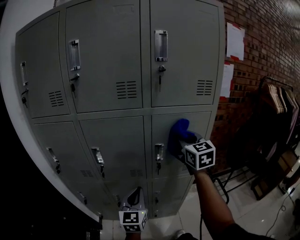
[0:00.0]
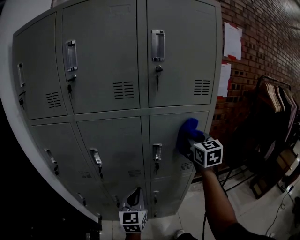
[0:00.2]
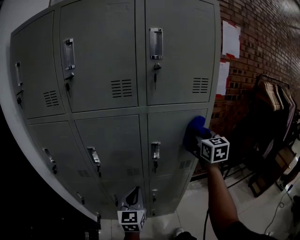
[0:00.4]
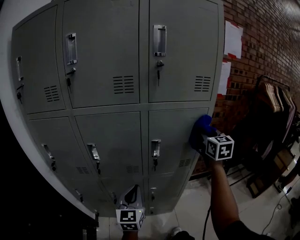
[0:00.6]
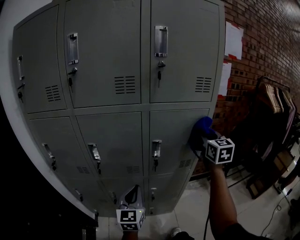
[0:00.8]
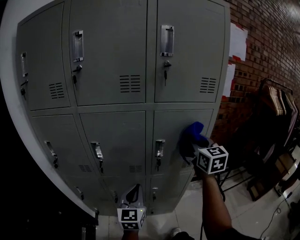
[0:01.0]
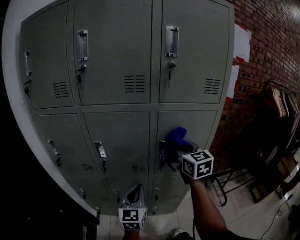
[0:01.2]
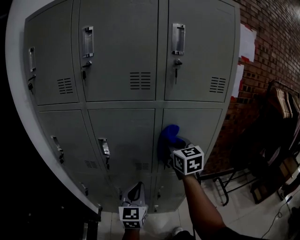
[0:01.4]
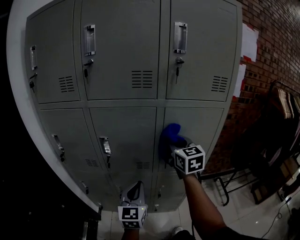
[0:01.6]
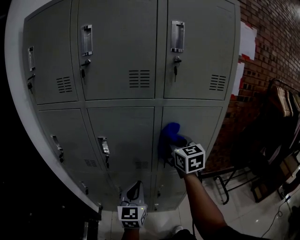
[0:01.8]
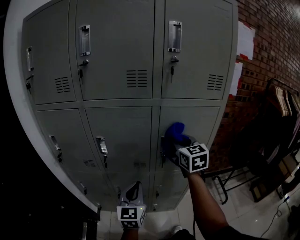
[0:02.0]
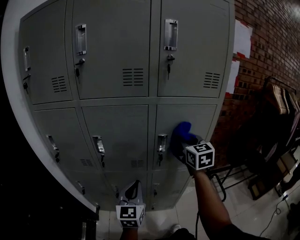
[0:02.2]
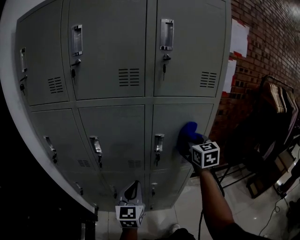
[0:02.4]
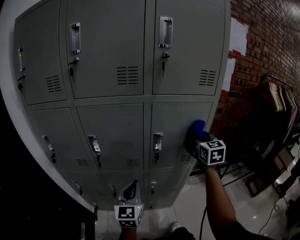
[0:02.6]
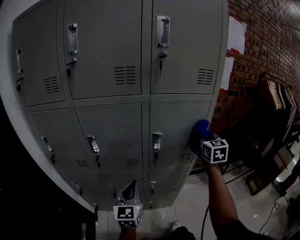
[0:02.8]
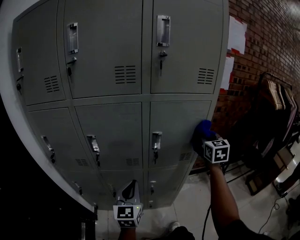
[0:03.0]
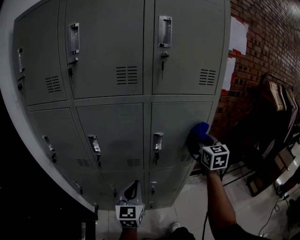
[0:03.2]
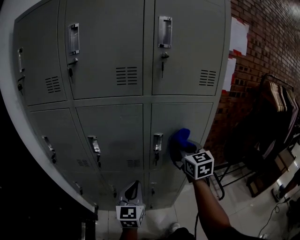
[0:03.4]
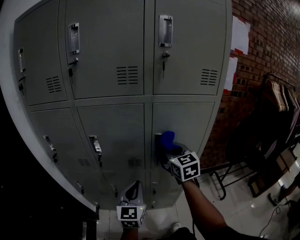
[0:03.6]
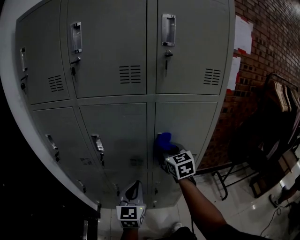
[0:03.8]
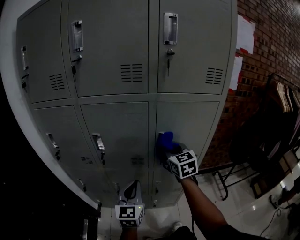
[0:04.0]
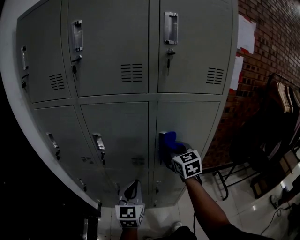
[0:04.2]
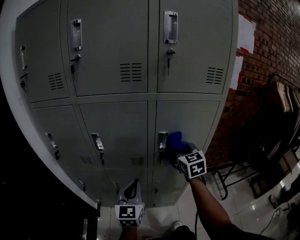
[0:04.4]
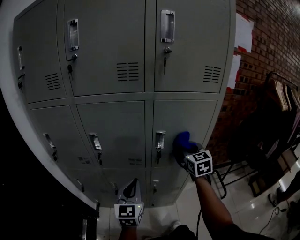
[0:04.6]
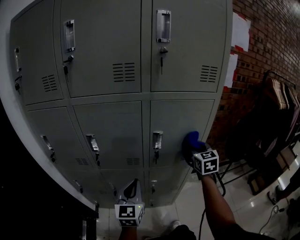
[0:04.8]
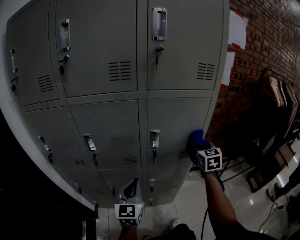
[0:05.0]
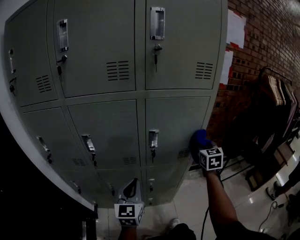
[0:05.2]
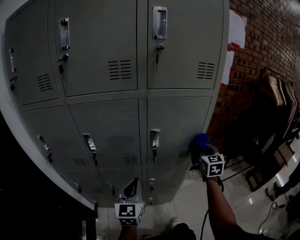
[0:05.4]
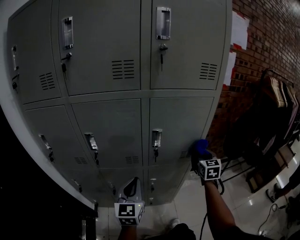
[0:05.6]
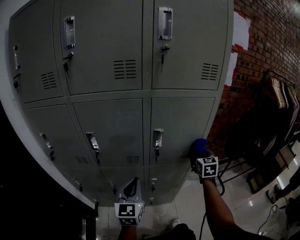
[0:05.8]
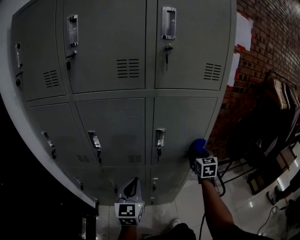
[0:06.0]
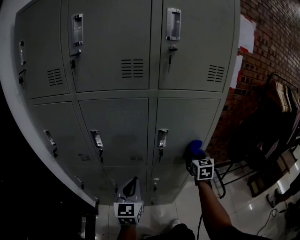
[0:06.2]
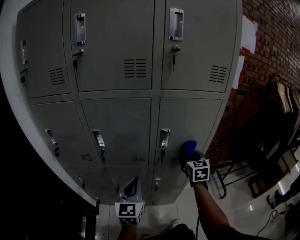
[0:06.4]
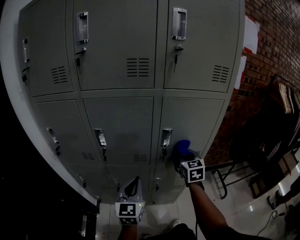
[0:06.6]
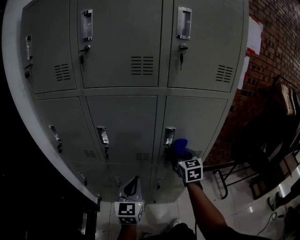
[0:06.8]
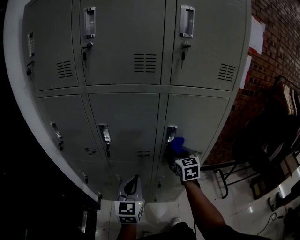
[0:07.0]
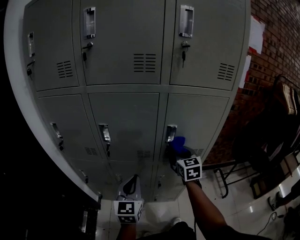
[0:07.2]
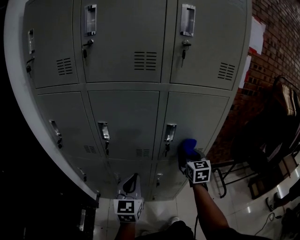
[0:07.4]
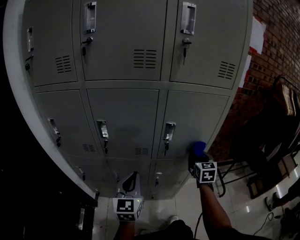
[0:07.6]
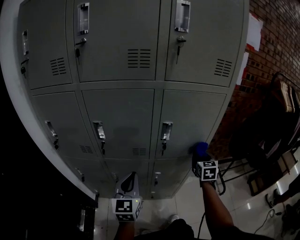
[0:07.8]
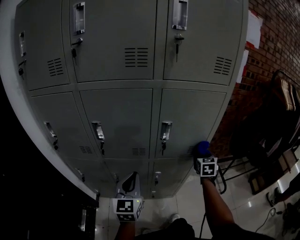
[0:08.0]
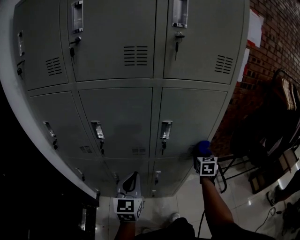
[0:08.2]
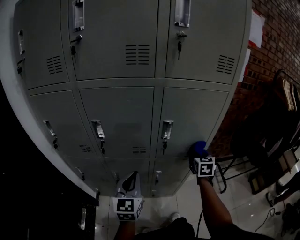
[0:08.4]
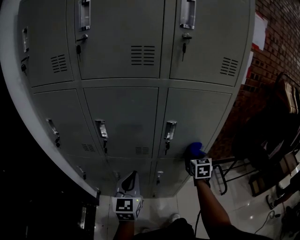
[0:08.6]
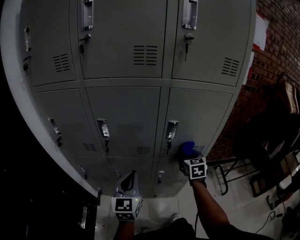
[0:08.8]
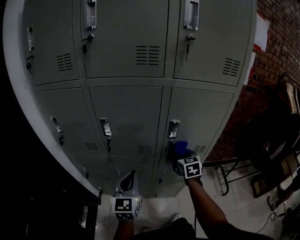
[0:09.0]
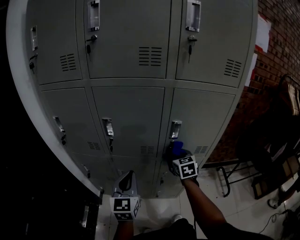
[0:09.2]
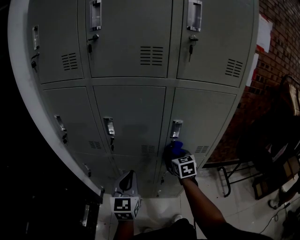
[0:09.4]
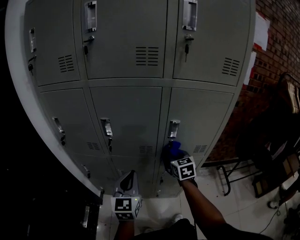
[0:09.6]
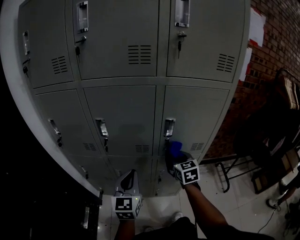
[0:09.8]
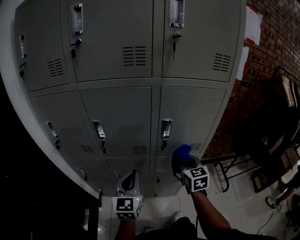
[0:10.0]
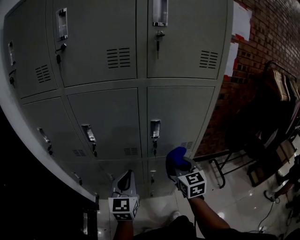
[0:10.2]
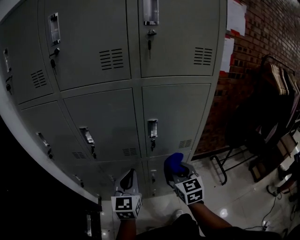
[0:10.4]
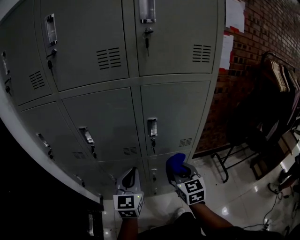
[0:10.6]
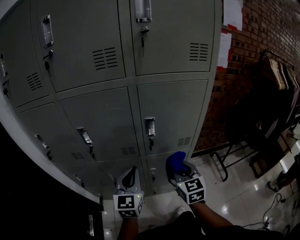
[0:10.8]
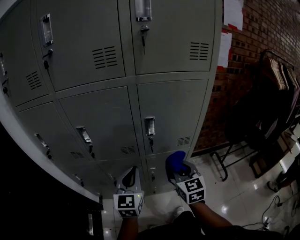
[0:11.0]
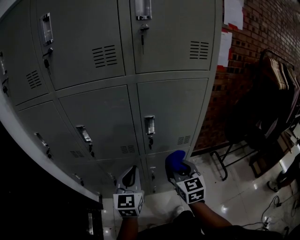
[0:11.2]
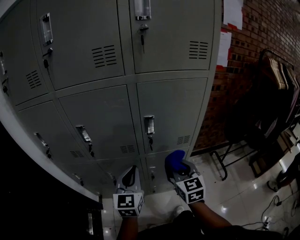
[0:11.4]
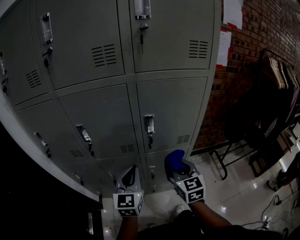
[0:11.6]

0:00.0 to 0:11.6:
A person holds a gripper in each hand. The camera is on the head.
0:00.0 to 0:01.4: The right gripper moves to the left, roughly 10 cm.
0:01.4 to 0:02.8: The right gripper is displaced to the right by approximately 20 cm.
0:02.8 to 0:04.4: The right gripper goes about 15 cm to the left.
0:04.4 to 0:05.8: The right gripper shifts approximately 20 cm to the right and downward, and rotates roughly 20 degrees.
0:05.8 to 0:07.2: The right gripper heads to the left, covering roughly 20 cm.
0:07.2 to 0:08.8: The right gripper heads downward, covering about 5 cm, and moves about 15 cm to the right and comes back.
0:08.8 to 0:10.2: The right gripper moves backward and upward, approximately 10 cm, and travels to the left and back again, some 10 cm each way.
0:10.2 to 0:11.6: The grippers move only a little.

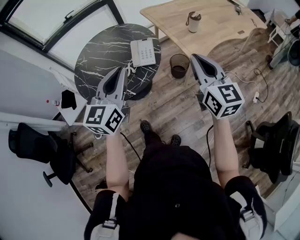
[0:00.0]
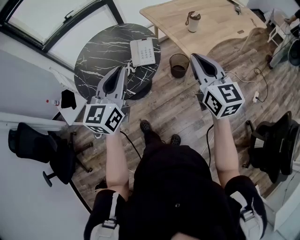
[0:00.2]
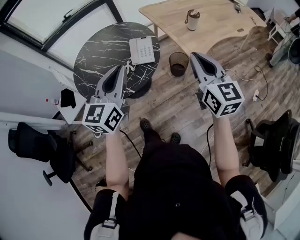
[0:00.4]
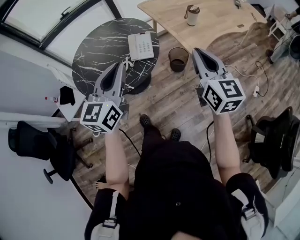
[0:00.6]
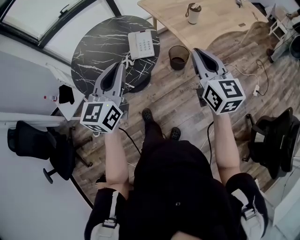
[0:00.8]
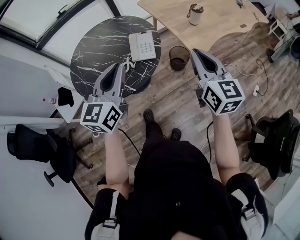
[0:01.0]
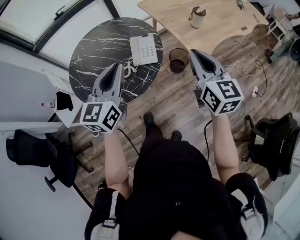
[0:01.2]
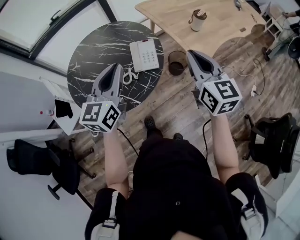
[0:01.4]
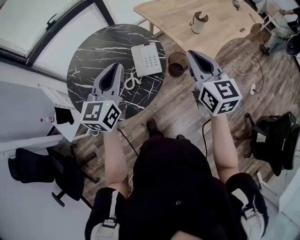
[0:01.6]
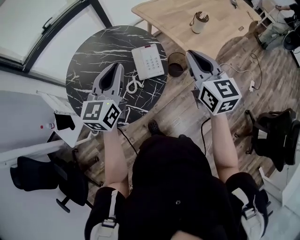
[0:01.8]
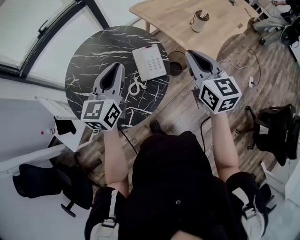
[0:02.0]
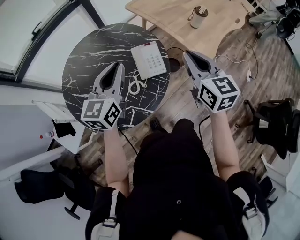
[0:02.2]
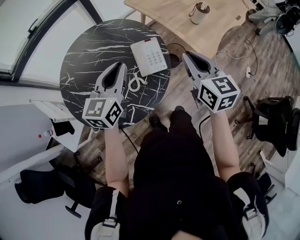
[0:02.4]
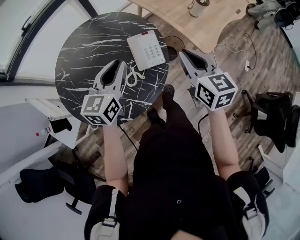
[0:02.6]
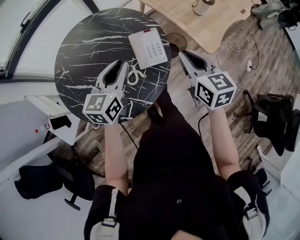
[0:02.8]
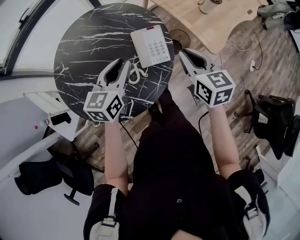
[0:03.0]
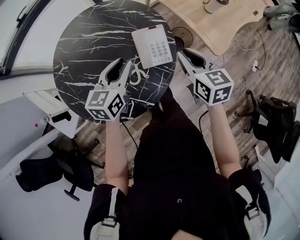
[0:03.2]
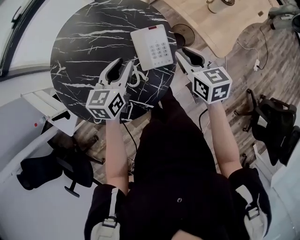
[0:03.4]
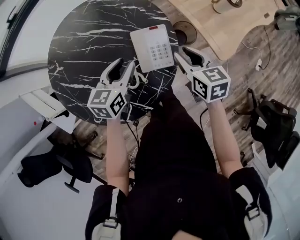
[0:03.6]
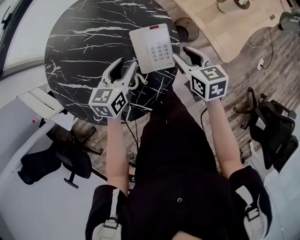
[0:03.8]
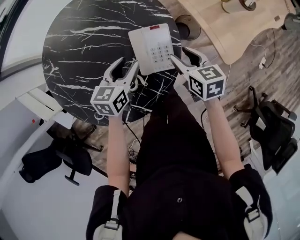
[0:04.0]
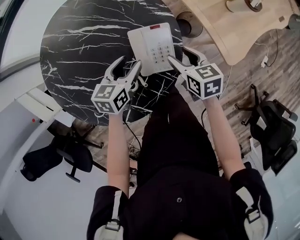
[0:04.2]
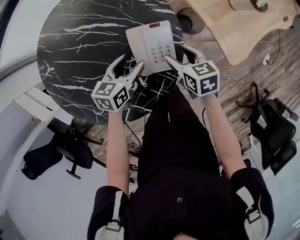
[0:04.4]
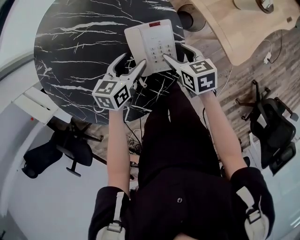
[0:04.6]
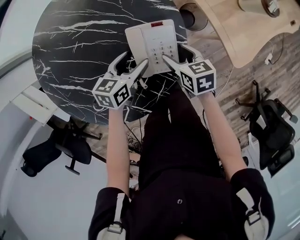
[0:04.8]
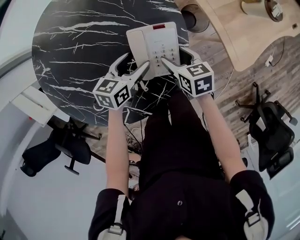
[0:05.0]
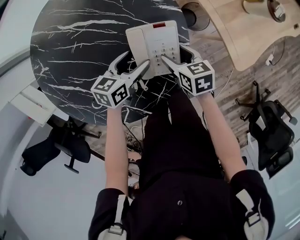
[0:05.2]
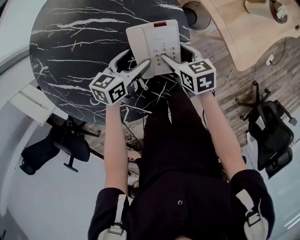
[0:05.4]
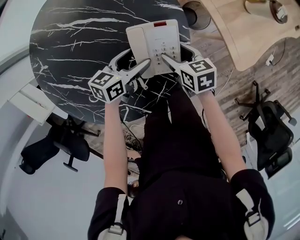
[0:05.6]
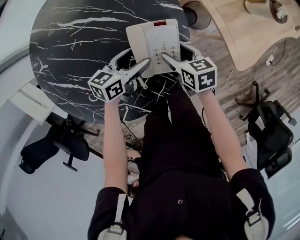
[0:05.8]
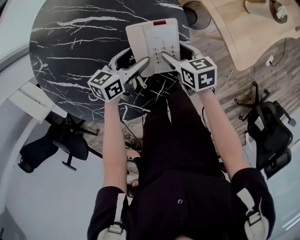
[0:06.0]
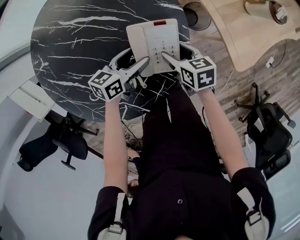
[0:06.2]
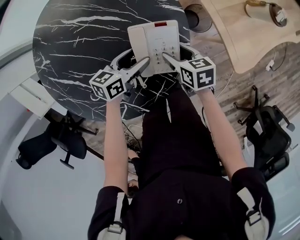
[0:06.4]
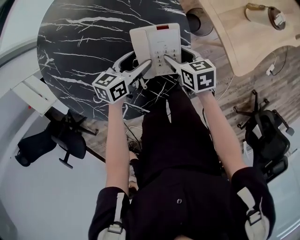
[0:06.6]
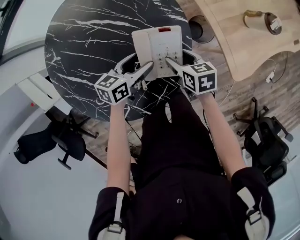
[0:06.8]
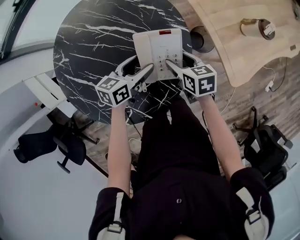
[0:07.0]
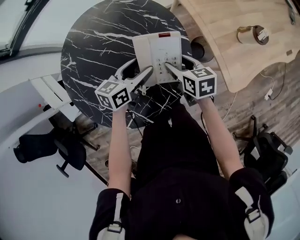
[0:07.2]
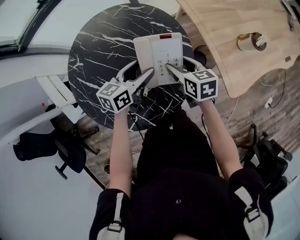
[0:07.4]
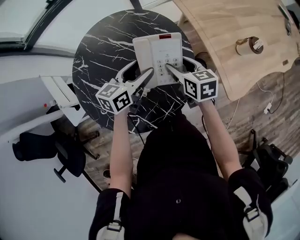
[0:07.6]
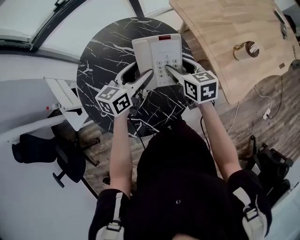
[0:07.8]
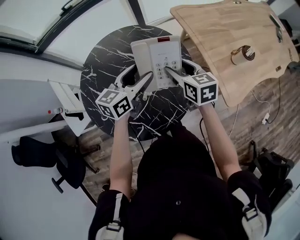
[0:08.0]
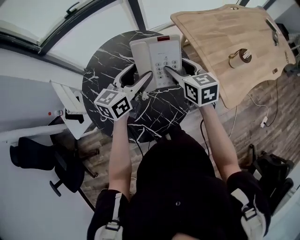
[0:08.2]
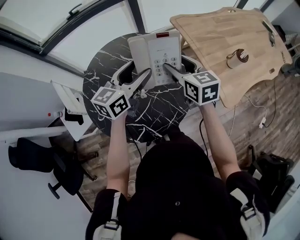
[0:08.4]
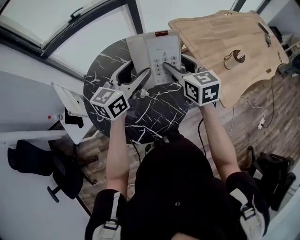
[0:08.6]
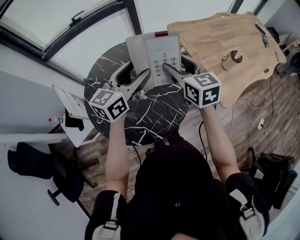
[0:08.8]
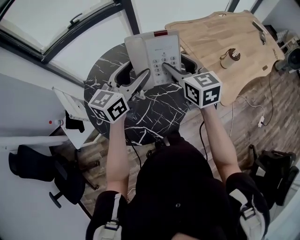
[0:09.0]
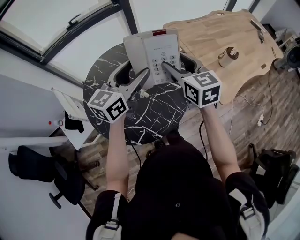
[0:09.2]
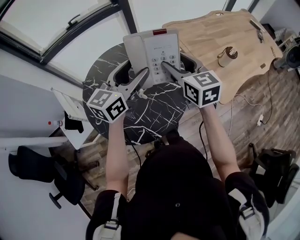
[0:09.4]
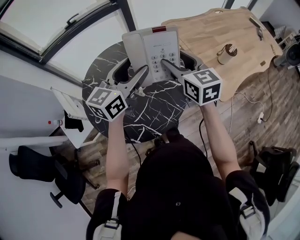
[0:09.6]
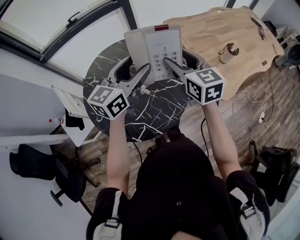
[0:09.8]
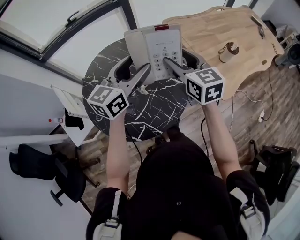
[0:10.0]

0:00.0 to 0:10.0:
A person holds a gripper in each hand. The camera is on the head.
0:00.0 to 0:01.4: Both grippers move forward and to the left, approximately 15 cm.
0:01.4 to 0:02.8: The right gripper is displaced downward, to the left and forward by approximately 15 cm; the left gripper goes roughly 20 cm downward, forward and to the left.
0:02.8 to 0:04.2: Both grippers travel together downward and forward, about 25 cm. The left gripper changes its angle by some 20 degrees, and opens up, while the right gripper swivels some 30 degrees, and opens its fingers.
0:04.2 to 0:05.8: The two grippers go roughly 10 cm downward.
0:05.8 to 0:07.2: The grippers both shift upward by about 10 cm.
0:07.2 to 0:08.6: Both grippers travel together upward, about 25 cm. The left gripper turns by about 30 degrees; the right gripper changes its angle by about 30 degrees.
0:08.6 to 0:10.0: The right gripper changes place by some 5 cm.

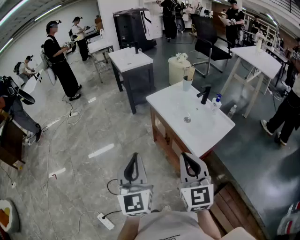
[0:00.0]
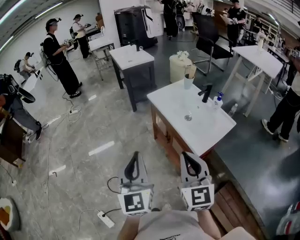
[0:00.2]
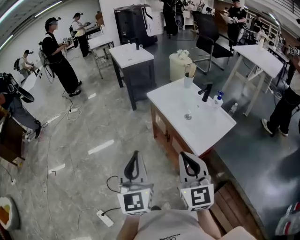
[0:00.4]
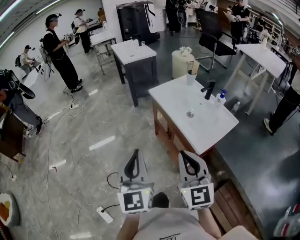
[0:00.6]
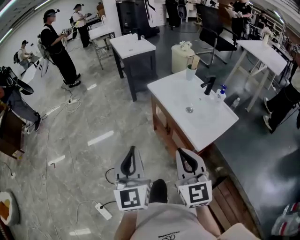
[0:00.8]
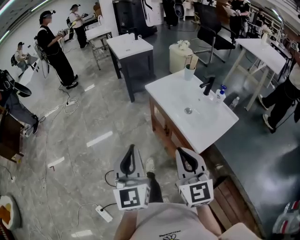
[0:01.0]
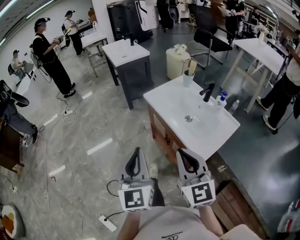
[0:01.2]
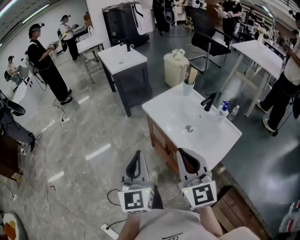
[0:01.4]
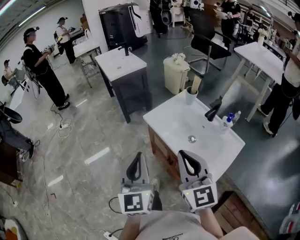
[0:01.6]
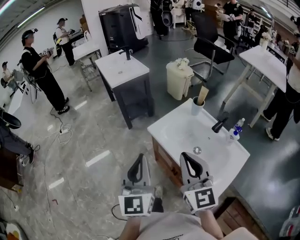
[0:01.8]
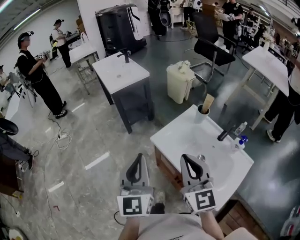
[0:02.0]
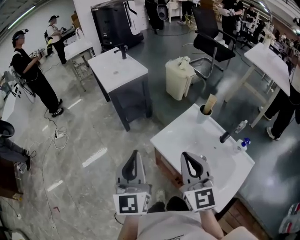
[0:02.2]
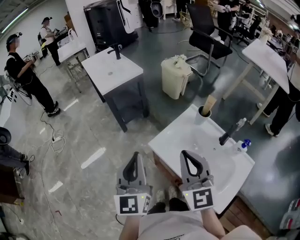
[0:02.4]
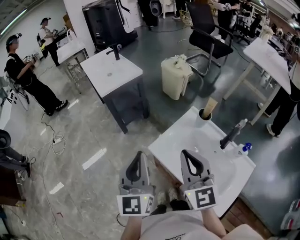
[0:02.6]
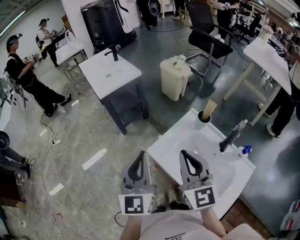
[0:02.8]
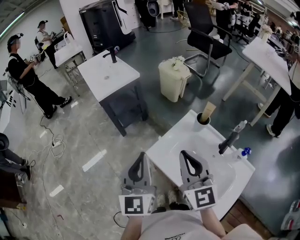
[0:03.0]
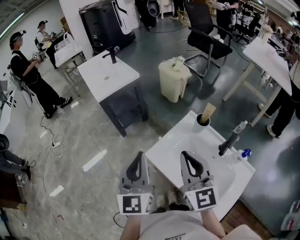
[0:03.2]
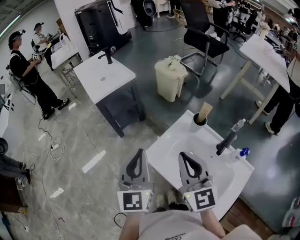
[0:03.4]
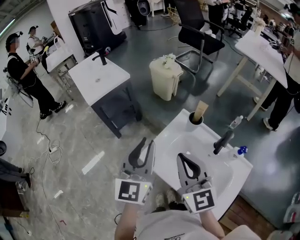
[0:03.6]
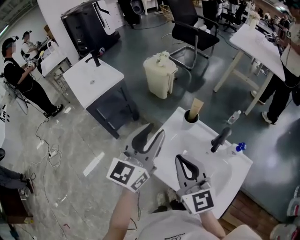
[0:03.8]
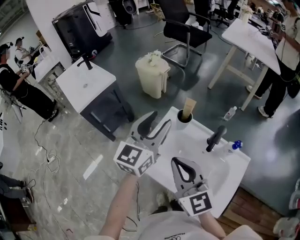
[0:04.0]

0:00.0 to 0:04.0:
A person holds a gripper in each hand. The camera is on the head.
0:00.0 to 0:01.4: The two grippers go about 15 cm forward.
0:01.4 to 0:02.6: Both grippers move forward, roughly 30 cm.
0:02.6 to 0:04.0: The left gripper shifts about 25 cm to the right and forward, changes its angle by approximately 40 degrees, and opens its fingers. The right gripper moves to the right, roughly 5 cm.
